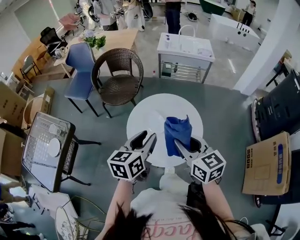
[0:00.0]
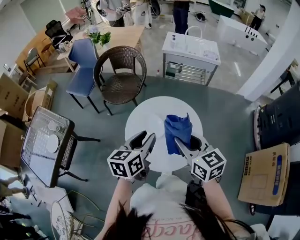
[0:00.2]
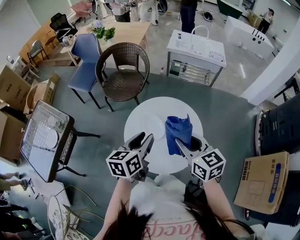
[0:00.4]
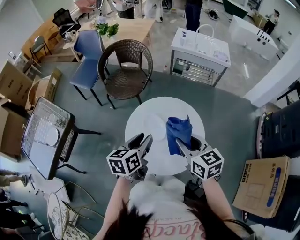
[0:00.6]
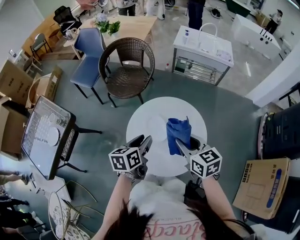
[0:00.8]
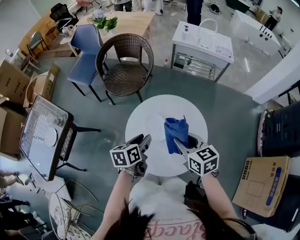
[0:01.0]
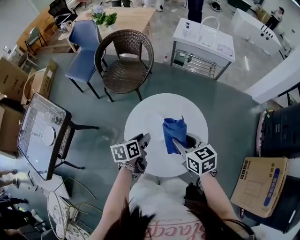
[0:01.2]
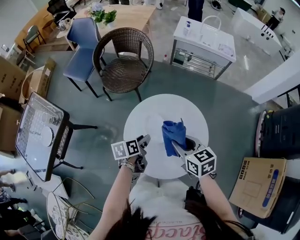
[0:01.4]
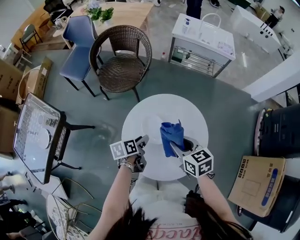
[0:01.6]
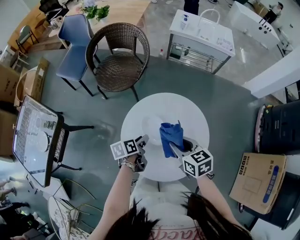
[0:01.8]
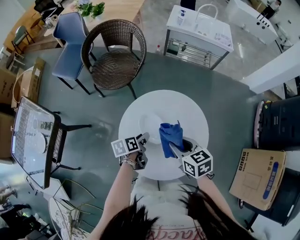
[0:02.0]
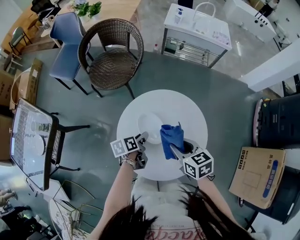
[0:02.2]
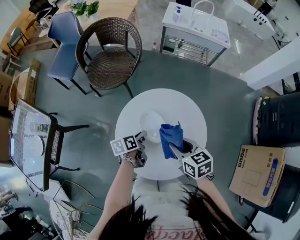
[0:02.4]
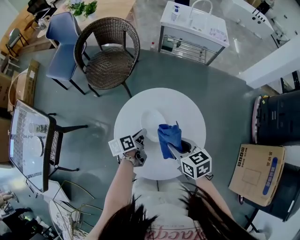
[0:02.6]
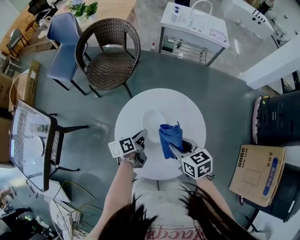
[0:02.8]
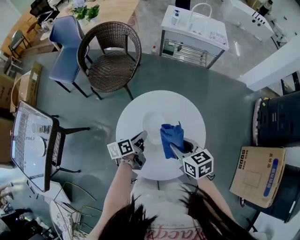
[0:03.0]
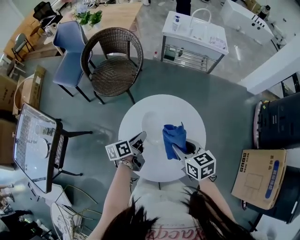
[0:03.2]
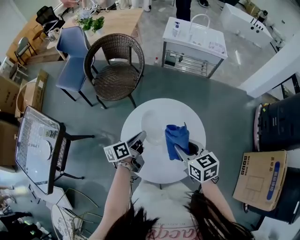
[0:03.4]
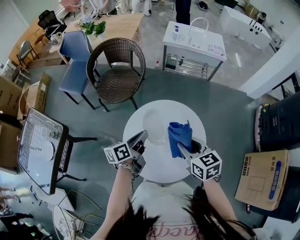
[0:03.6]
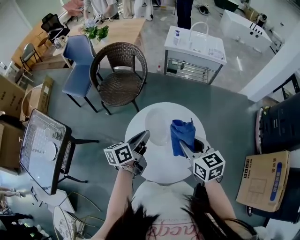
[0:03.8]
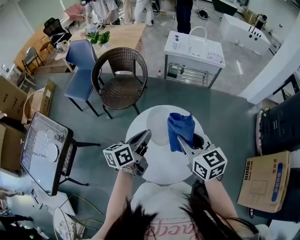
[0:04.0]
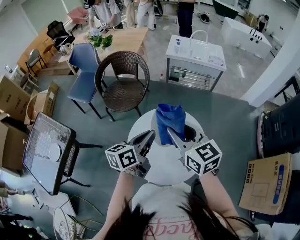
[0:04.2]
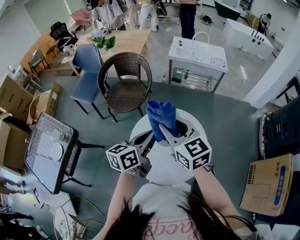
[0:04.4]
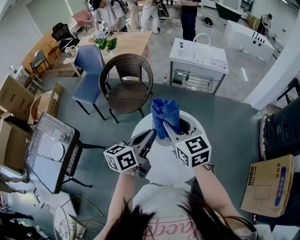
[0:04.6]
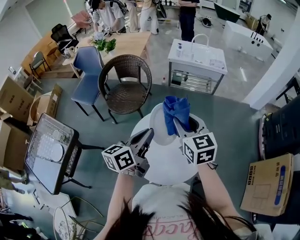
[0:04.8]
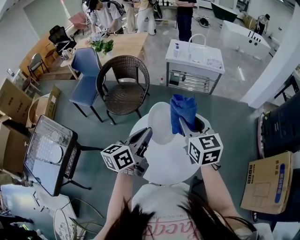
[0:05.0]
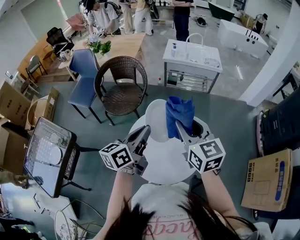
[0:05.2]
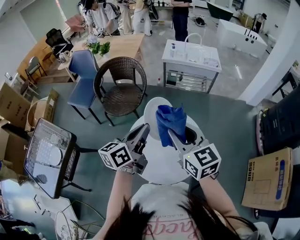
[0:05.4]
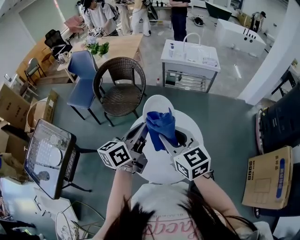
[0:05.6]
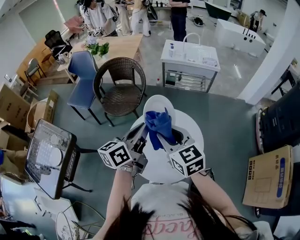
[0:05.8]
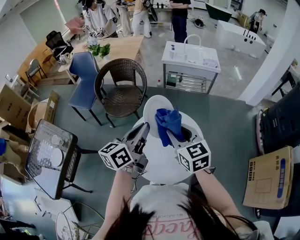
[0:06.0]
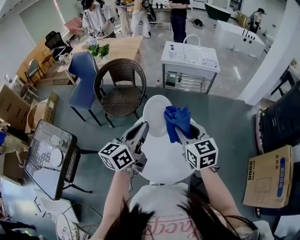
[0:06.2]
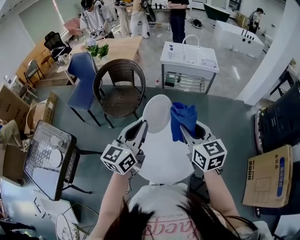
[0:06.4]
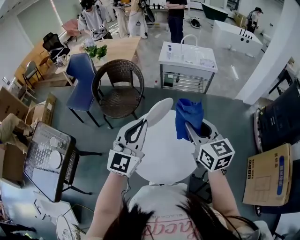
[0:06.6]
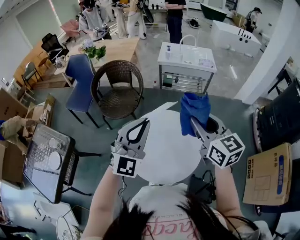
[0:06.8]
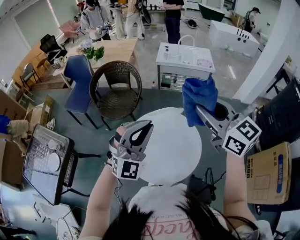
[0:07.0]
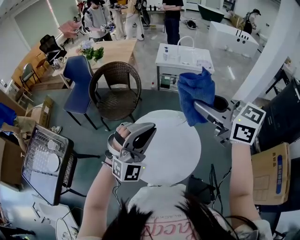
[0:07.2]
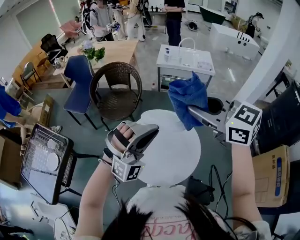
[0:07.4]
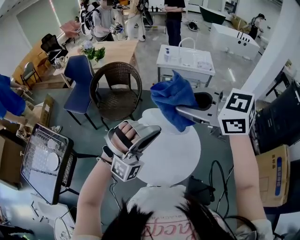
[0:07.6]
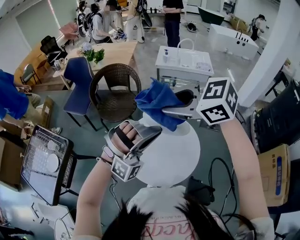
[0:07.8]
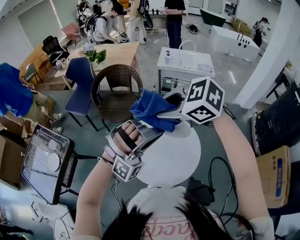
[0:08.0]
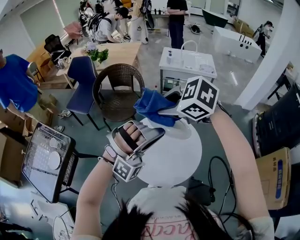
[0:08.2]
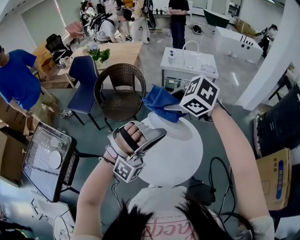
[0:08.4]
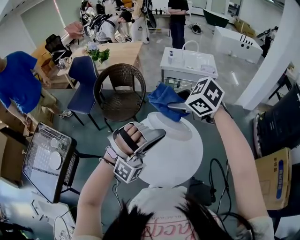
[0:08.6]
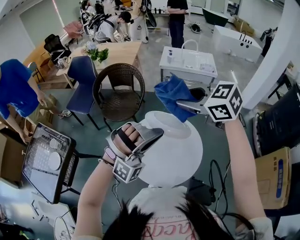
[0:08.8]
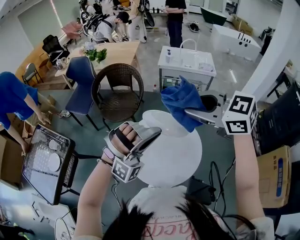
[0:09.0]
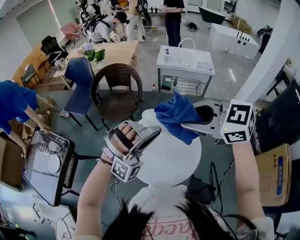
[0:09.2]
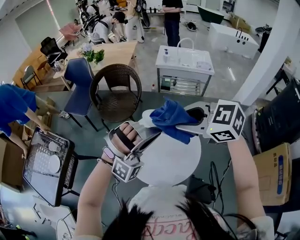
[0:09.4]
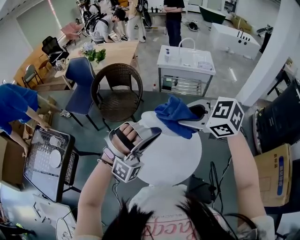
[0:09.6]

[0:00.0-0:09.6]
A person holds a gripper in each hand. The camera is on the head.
0:00.0 to 0:01.6: Both grippers move downward and forward, about 25 cm. The left gripper rotates approximately 40 degrees. Meanwhile the right gripper swivels some 20 degrees.
0:01.6 to 0:03.2: The left gripper closes its fingers.
0:03.2 to 0:04.8: The grippers both shift upward by about 20 cm. The right gripper swivels approximately 30 degrees. The left gripper swivels approximately 30 degrees.
0:04.8 to 0:06.4: The left gripper moves about 5 cm, and turns by some 30 degrees. Meanwhile the right gripper ends up some 5 cm from where it was.
0:06.4 to 0:08.0: The left gripper is displaced to the right and backward by about 10 cm, and rolls clockwise, seen from behind, by some 110 degrees; the right gripper is displaced to the left and upward by approximately 15 cm, and turns by approximately 60 degrees.
0:08.0 to 0:09.6: The right gripper shifts approximately 5 cm to the right, and moves approximately 5 cm forward and comes back.

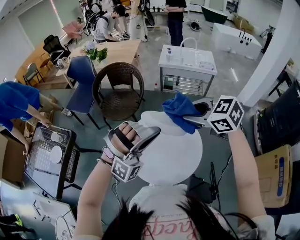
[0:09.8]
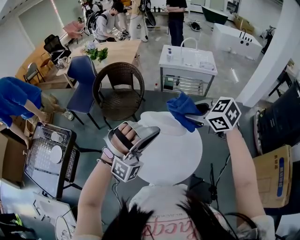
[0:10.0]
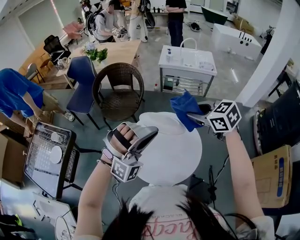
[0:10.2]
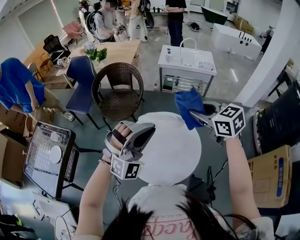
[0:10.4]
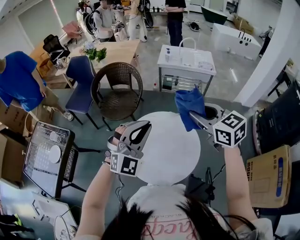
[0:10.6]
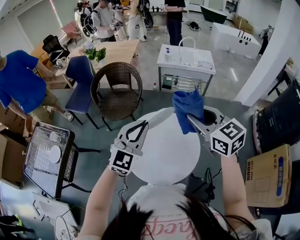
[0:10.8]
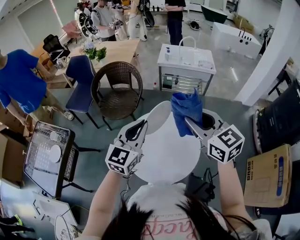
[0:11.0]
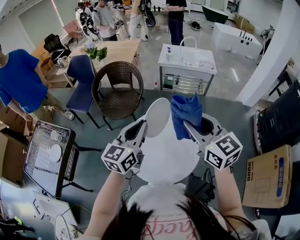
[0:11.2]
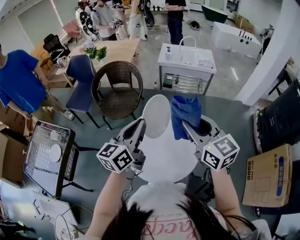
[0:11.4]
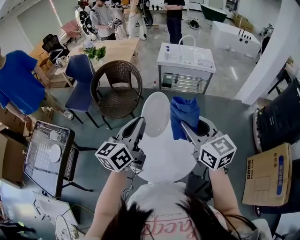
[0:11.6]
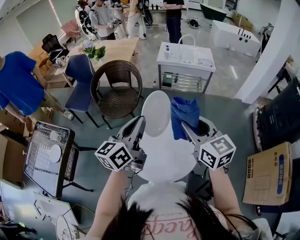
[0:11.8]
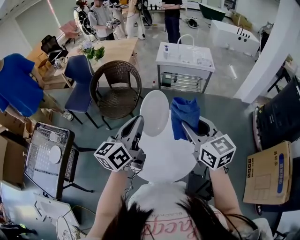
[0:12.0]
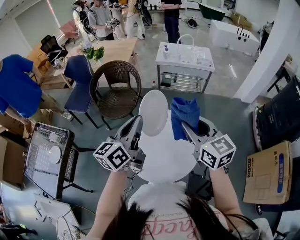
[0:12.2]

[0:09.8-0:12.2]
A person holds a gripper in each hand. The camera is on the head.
0:09.8 to 0:11.0: The left gripper is displaced forward by approximately 5 cm, and twists about 90 degrees counterclockwise, seen from behind. Meanwhile the right gripper rotates approximately 30 degrees.
0:11.0 to 0:12.2: The left gripper swivels roughly 40 degrees.

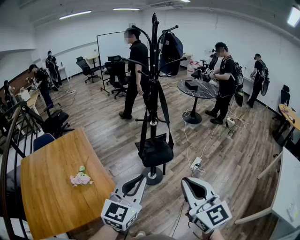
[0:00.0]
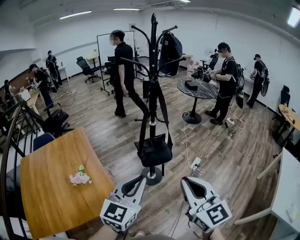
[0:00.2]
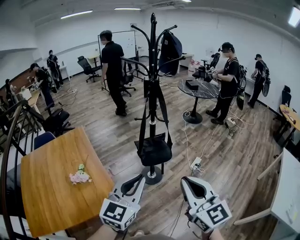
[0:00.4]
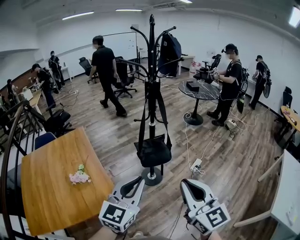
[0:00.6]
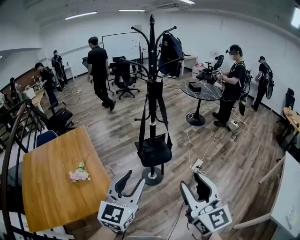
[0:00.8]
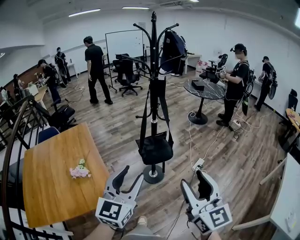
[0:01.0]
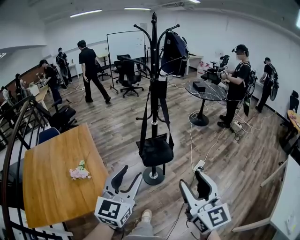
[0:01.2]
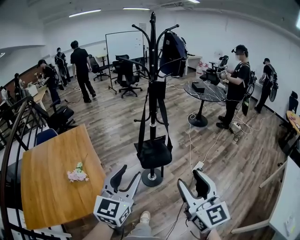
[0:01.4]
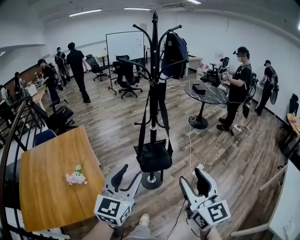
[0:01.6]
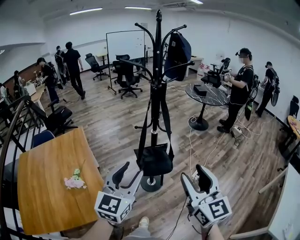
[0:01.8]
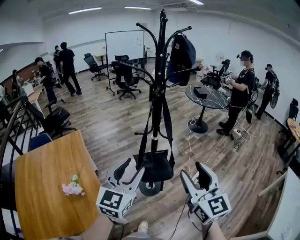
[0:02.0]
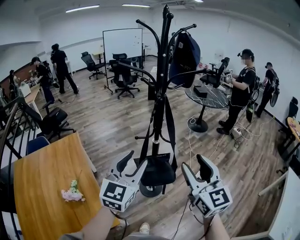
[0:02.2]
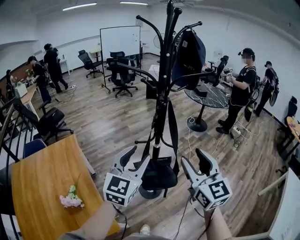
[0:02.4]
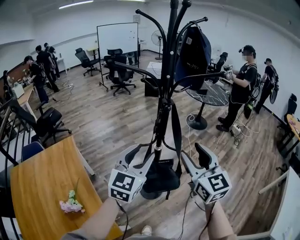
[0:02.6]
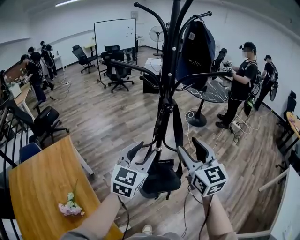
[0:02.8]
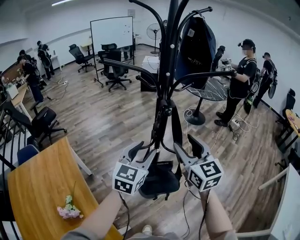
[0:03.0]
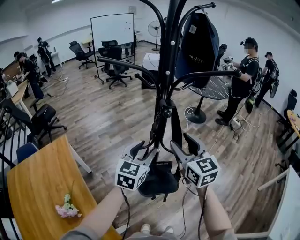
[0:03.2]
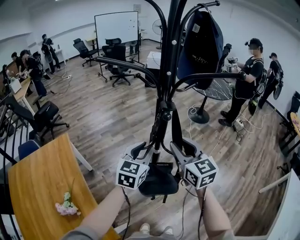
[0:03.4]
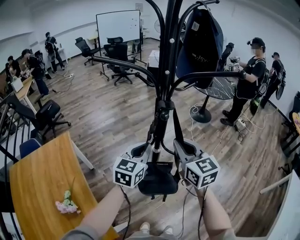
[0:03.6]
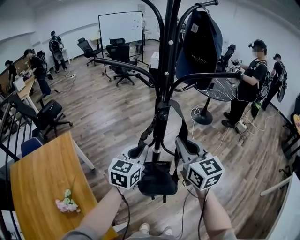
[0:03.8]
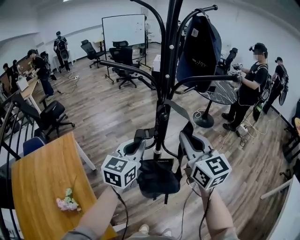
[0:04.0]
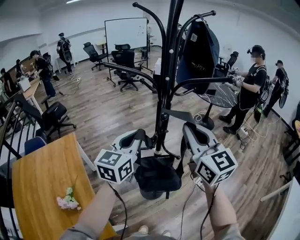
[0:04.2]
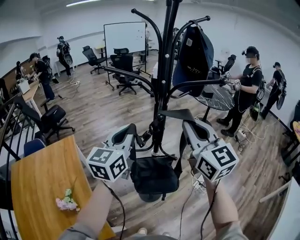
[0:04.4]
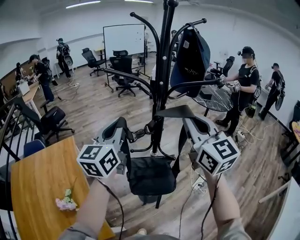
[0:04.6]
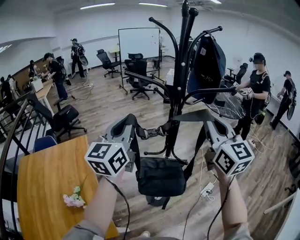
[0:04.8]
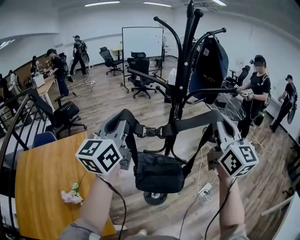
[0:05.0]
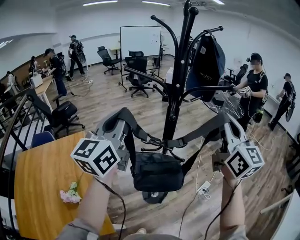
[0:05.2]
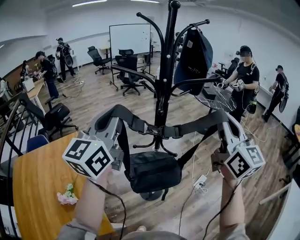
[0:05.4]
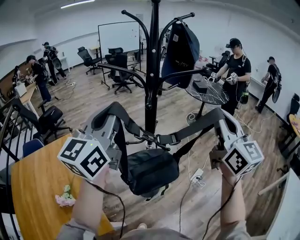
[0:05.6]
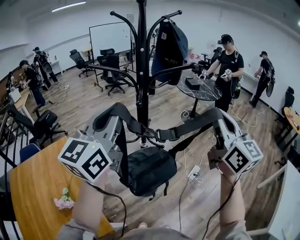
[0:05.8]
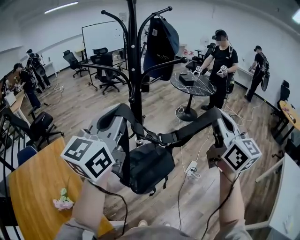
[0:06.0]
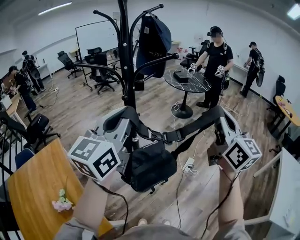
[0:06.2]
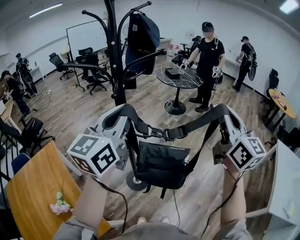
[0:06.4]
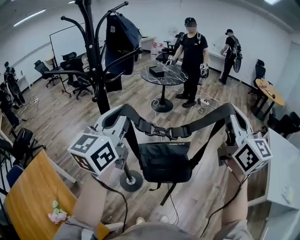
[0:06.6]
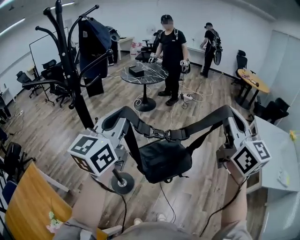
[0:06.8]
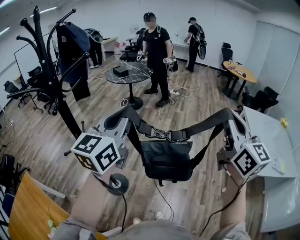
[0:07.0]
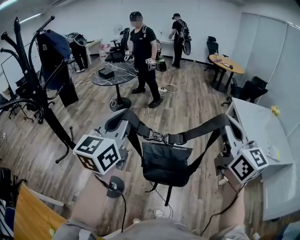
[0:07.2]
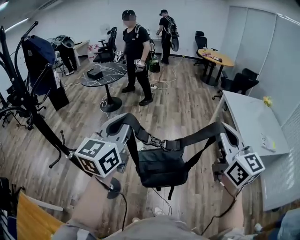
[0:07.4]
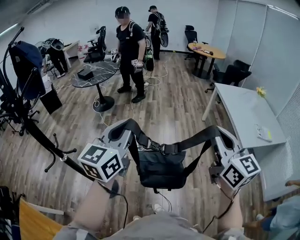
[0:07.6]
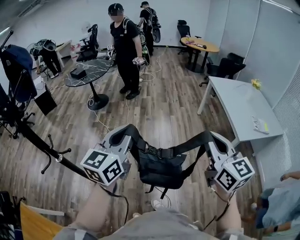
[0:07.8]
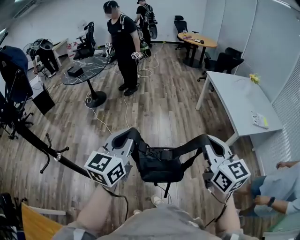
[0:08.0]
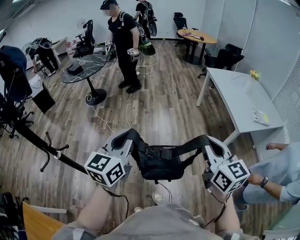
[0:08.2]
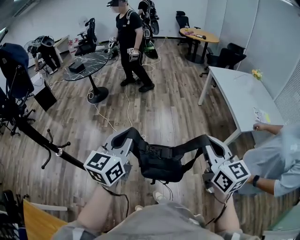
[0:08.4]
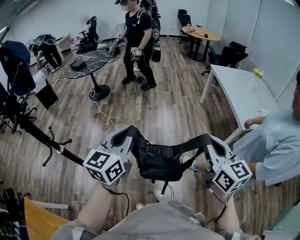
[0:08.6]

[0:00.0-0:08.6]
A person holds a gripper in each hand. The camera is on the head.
0:00.0 to 0:01.4: The right gripper heads to the right, covering about 5 cm, and opens; the left gripper opens up.
0:01.4 to 0:02.8: The two grippers go approximately 35 cm forward.
0:02.8 to 0:04.4: The two grippers go about 10 cm upward. The right gripper closes up, while the left gripper closes up.
0:04.4 to 0:05.8: The left gripper shifts approximately 15 cm upward and backward. The right gripper heads to the right and backward, covering roughly 15 cm.
0:05.8 to 0:07.2: The left gripper moves roughly 35 cm, and turns by some 40 degrees. The right gripper ends up roughly 35 cm from where it was, and rotates some 40 degrees.
0:07.2 to 0:08.6: The right gripper shifts about 20 cm downward, backward and to the right. Meanwhile the left gripper heads downward and to the right, covering about 15 cm.

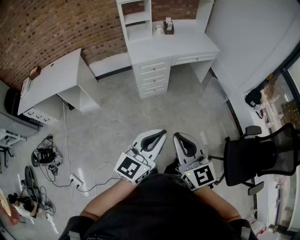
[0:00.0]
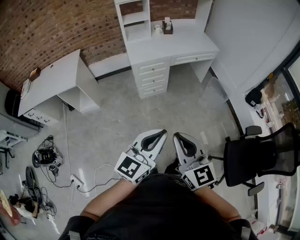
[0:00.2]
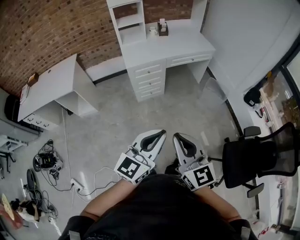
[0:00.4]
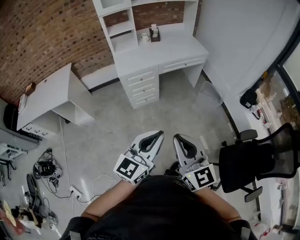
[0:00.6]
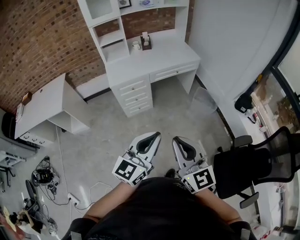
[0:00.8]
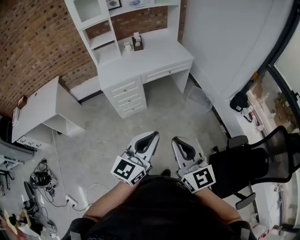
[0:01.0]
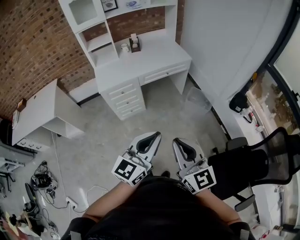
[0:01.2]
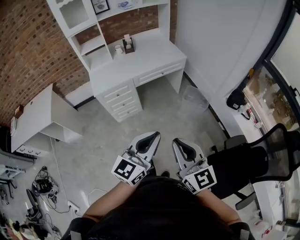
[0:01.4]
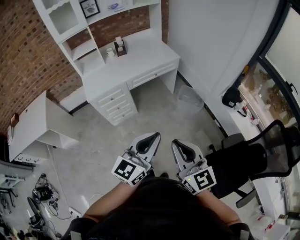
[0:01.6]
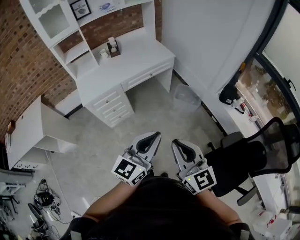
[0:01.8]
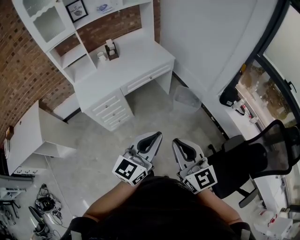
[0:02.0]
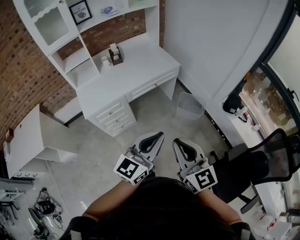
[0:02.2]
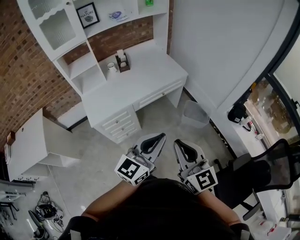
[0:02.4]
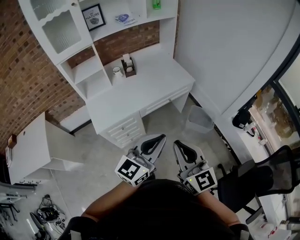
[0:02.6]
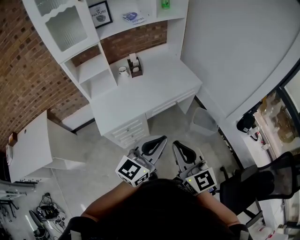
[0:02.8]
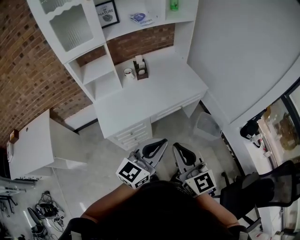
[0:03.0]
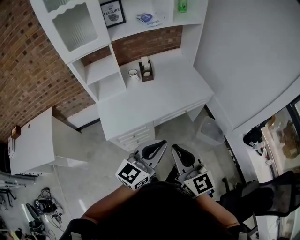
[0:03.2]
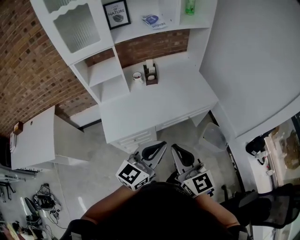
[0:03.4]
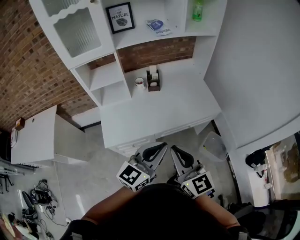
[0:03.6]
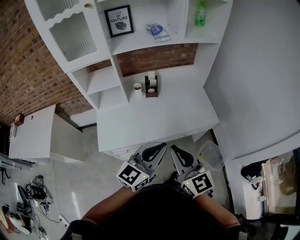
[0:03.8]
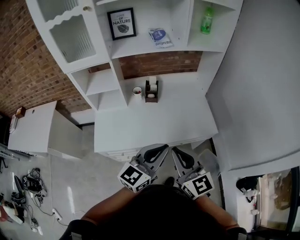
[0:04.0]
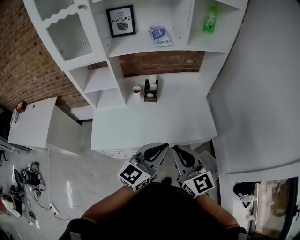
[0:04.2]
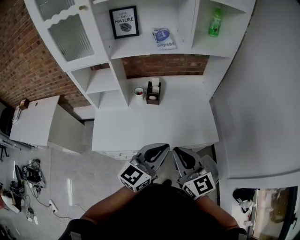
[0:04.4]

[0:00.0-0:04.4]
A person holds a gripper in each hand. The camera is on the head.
0:00.0 to 0:01.4: Both grippers move to the right and forward, roughly 30 cm.
0:01.4 to 0:03.0: The grippers both shift forward and to the left by about 40 cm.
0:03.0 to 0:04.4: Both grippers travel together forward and to the right, about 30 cm. The left gripper changes its angle by roughly 20 degrees, while the right gripper rotates some 20 degrees.
